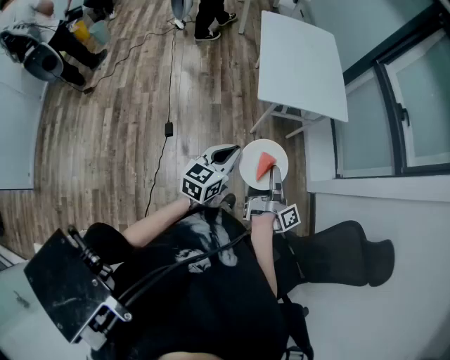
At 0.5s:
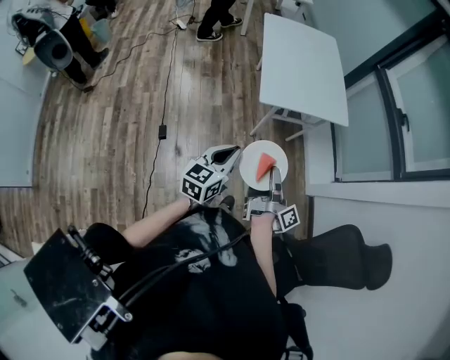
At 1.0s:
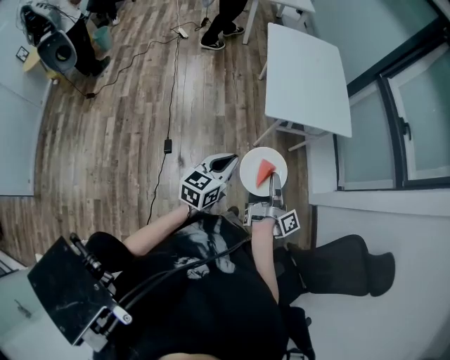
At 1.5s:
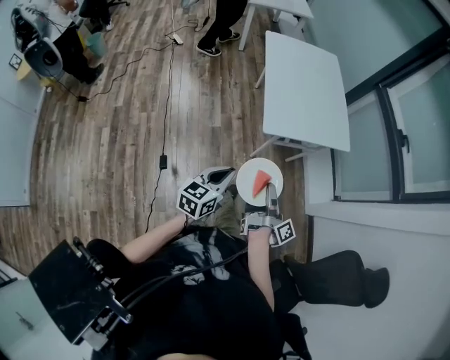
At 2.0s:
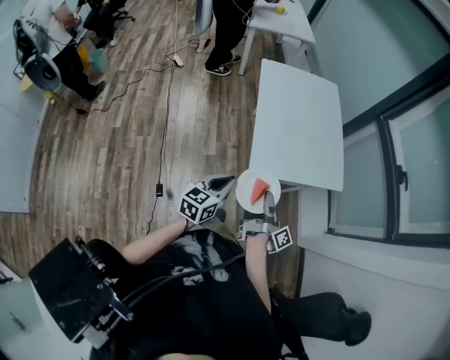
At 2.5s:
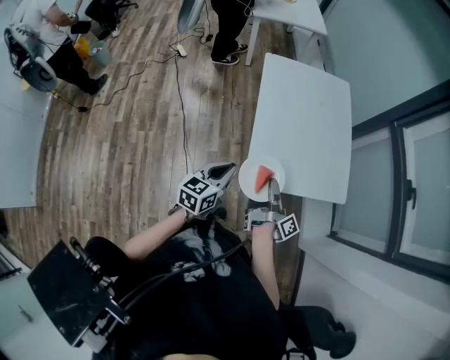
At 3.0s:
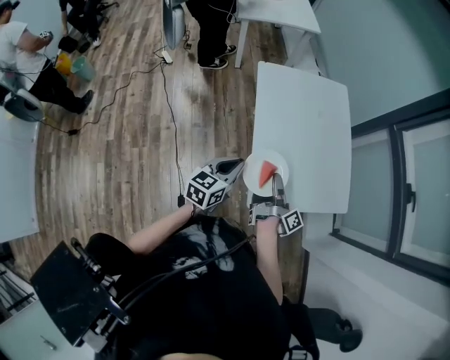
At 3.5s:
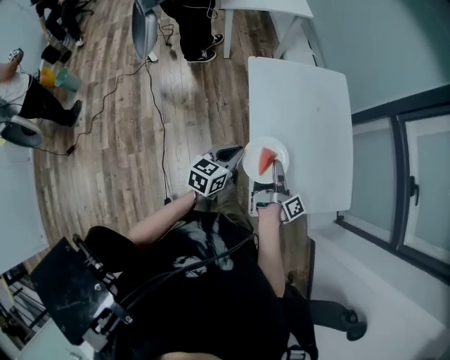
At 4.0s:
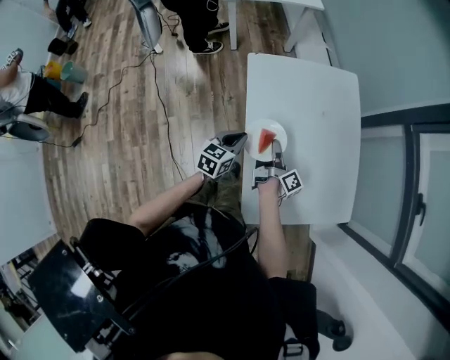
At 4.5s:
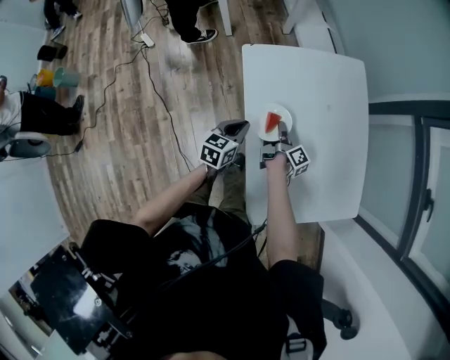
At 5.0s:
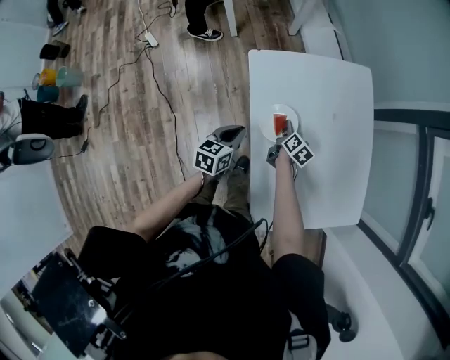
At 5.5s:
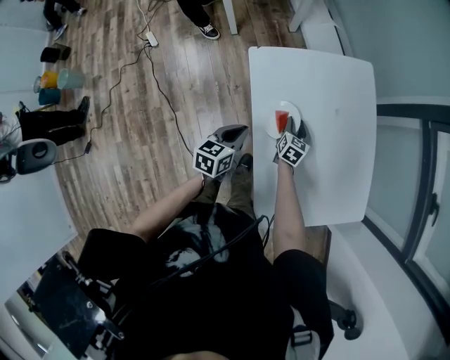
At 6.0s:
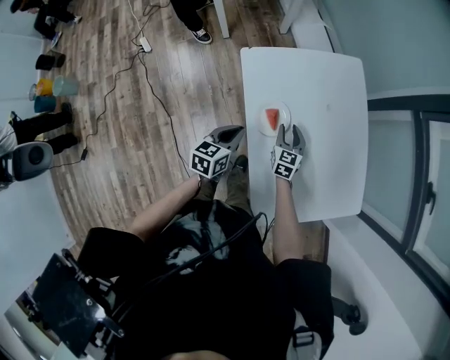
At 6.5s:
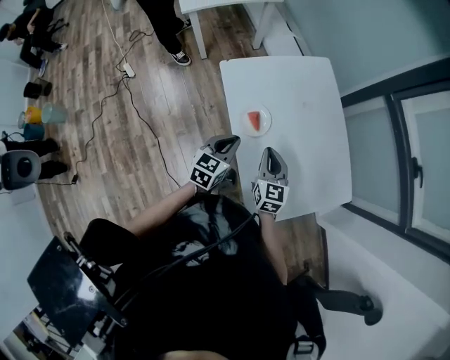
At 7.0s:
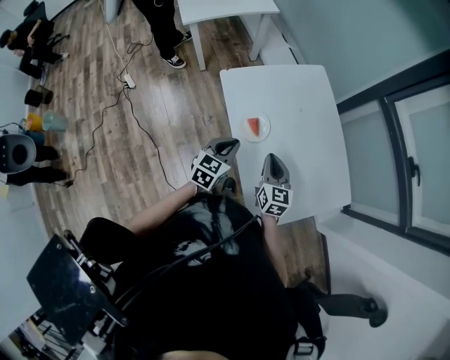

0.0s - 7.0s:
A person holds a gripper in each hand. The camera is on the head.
0.0s - 2.0s: The left gripper ends up approximately 25 cm from where it was.
2.0s - 3.5s: The left gripper shifts by approximately 40 cm.
3.5s - 5.0s: The left gripper moves about 20 cm.
5.0s - 7.0s: The left gripper heads upward, covering approximately 10 cm, and turns by some 30 degrees.

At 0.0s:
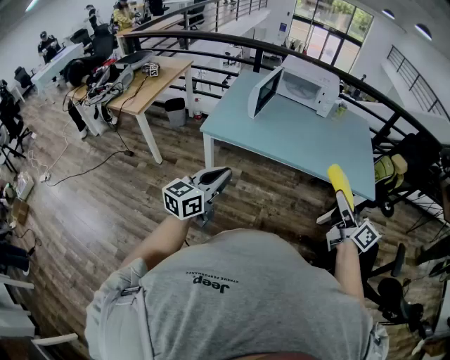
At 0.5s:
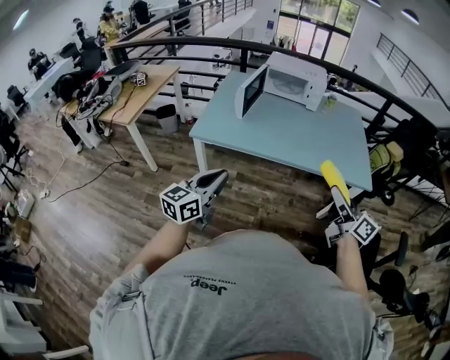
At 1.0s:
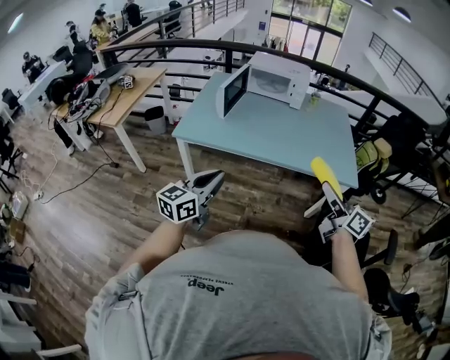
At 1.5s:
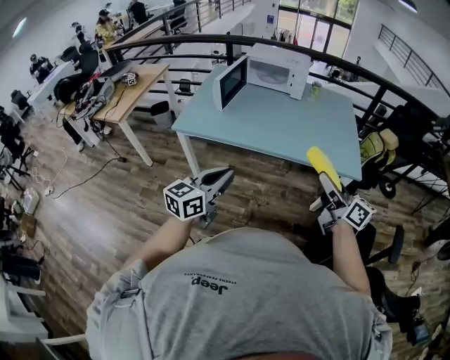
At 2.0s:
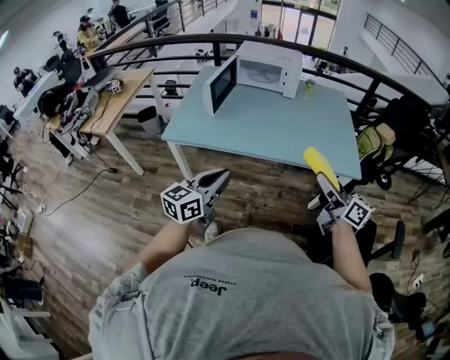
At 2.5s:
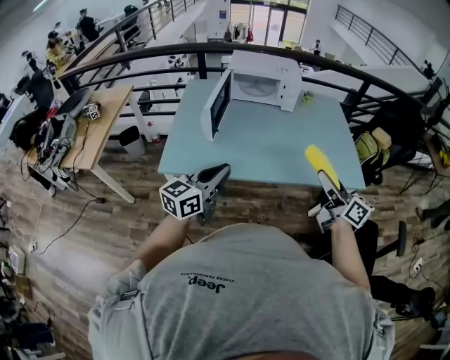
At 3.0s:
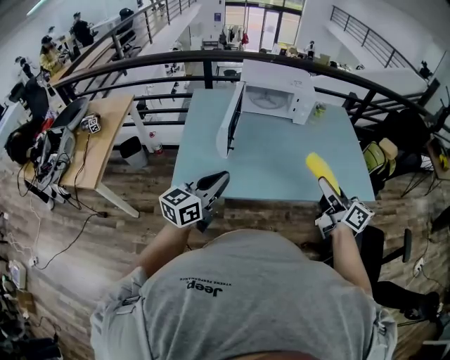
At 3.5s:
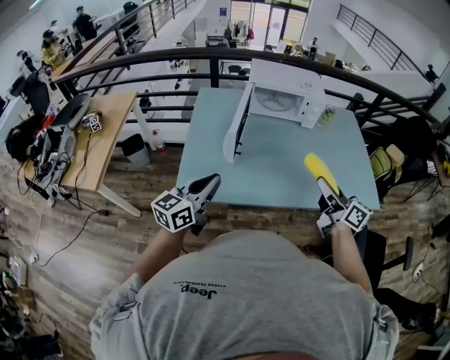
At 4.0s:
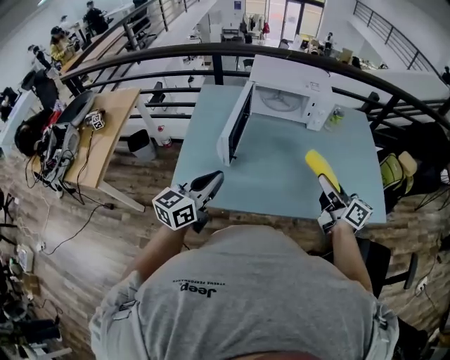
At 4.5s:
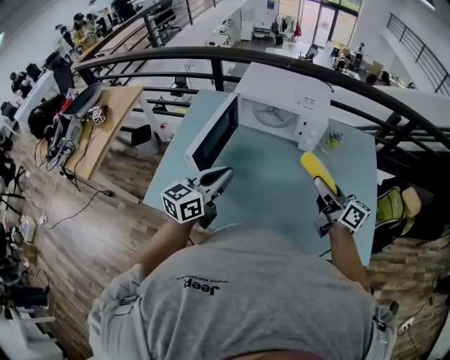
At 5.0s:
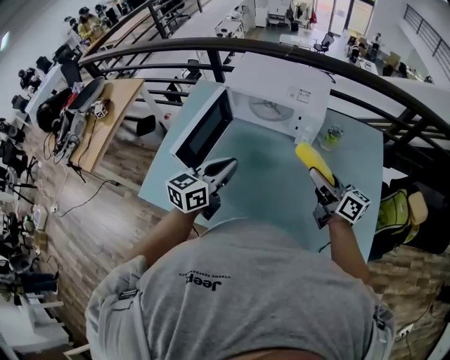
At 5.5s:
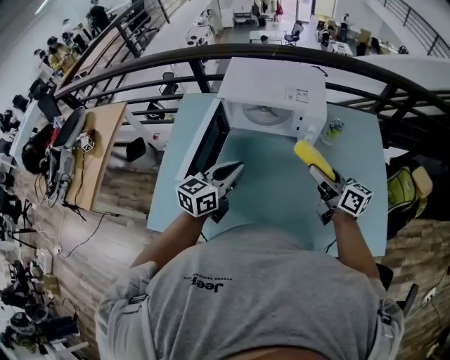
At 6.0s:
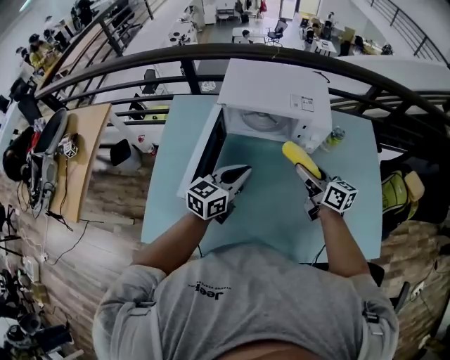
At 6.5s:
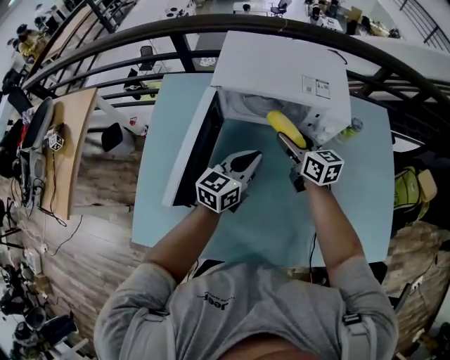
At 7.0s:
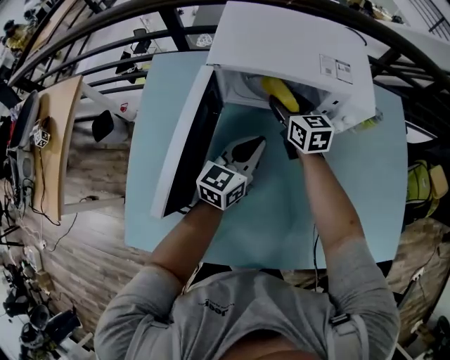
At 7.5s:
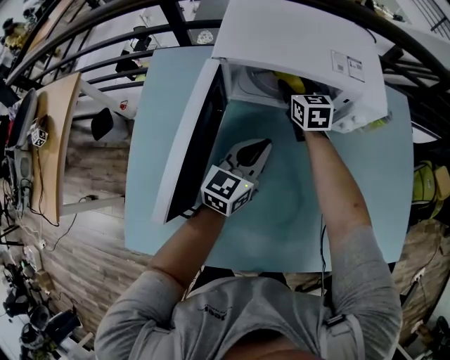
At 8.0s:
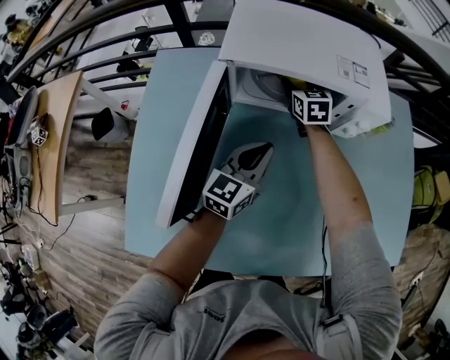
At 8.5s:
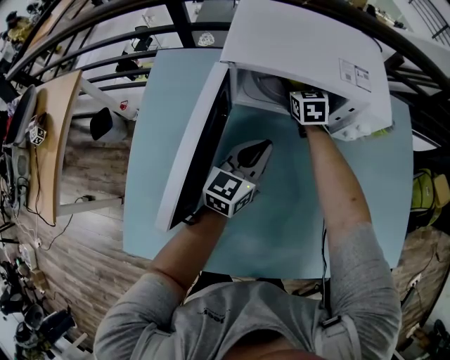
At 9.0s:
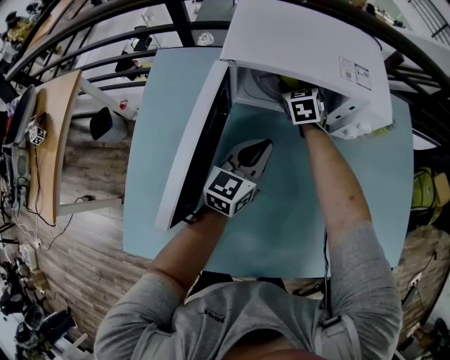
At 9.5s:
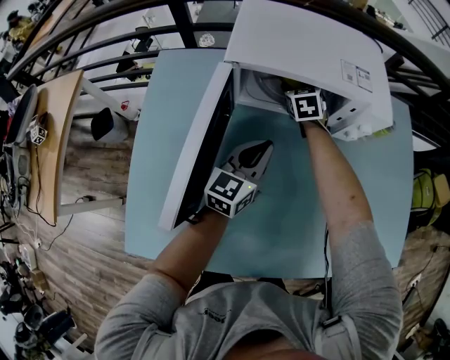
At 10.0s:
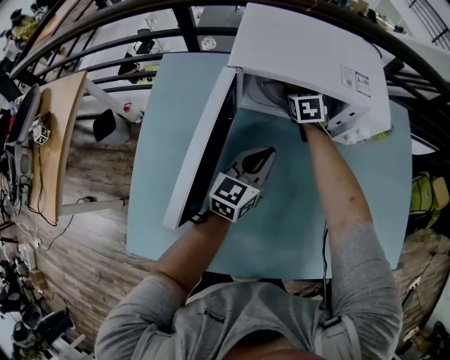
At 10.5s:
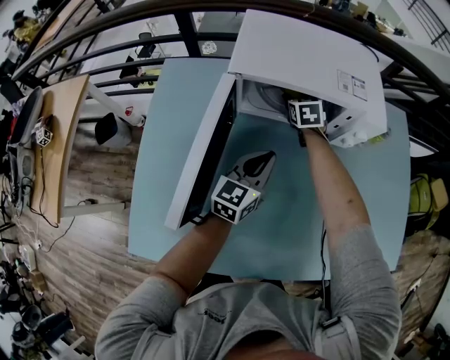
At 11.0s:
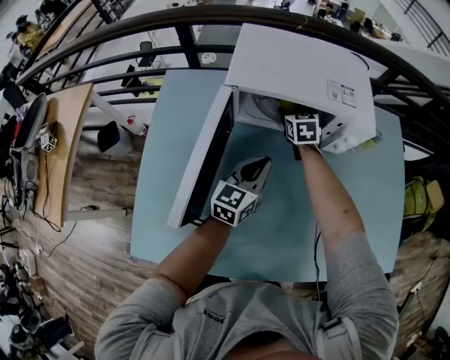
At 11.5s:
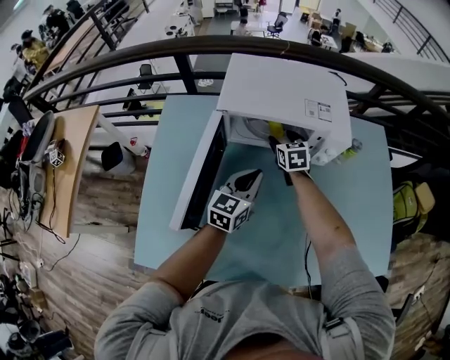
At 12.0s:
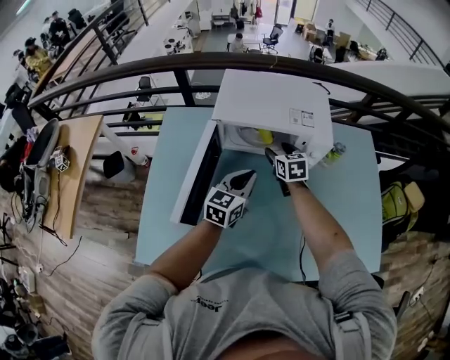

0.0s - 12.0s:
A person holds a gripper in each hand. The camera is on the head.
0.0s - 2.0s: The left gripper shifts about 15 cm to the right, while the right gripper heads to the right and forward, covering approximately 10 cm.
2.0s - 4.0s: The two grippers go approximately 35 cm forward and to the left.
4.0s - 6.0s: The right gripper is displaced forward by about 25 cm. Meanwhile the left gripper heads forward and to the right, covering about 30 cm.
6.0s - 8.0s: The right gripper goes approximately 35 cm forward, downward and to the left, and changes its angle by some 40 degrees, while the left gripper moves downward and forward, about 15 cm.
8.0s - 10.0s: The grippers move only a little.
10.0s - 12.0s: The left gripper heads upward, covering approximately 10 cm, while the right gripper moves backward, upward and to the right, roughly 15 cm.

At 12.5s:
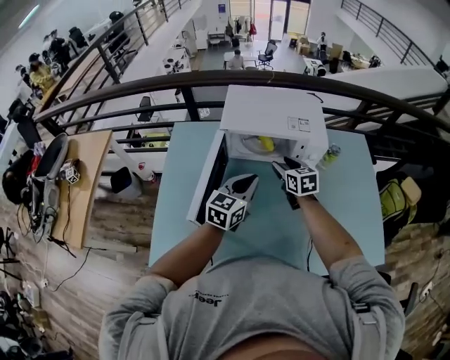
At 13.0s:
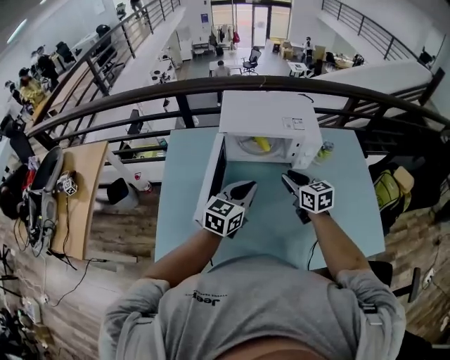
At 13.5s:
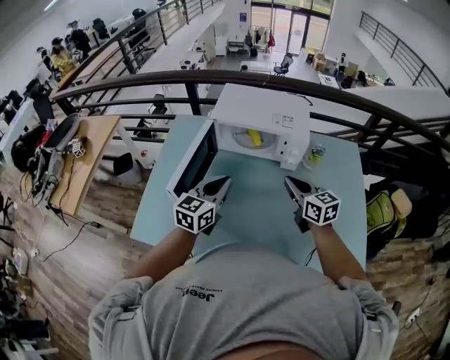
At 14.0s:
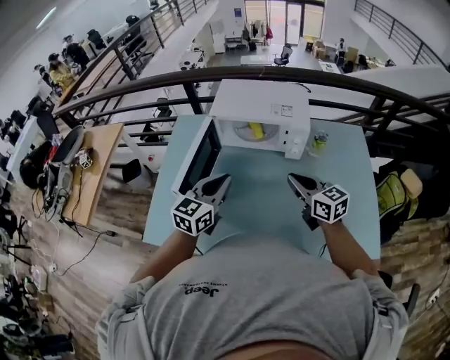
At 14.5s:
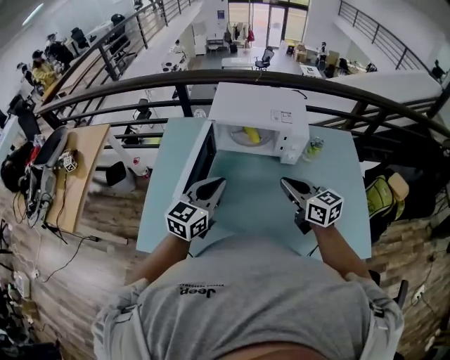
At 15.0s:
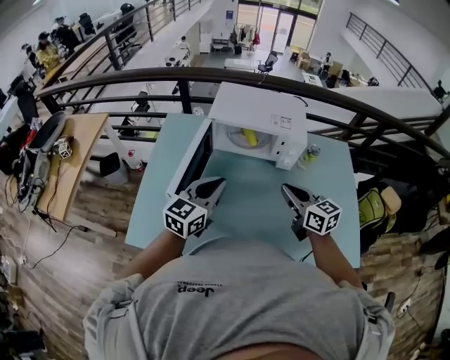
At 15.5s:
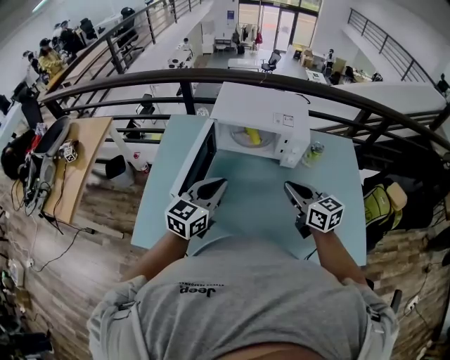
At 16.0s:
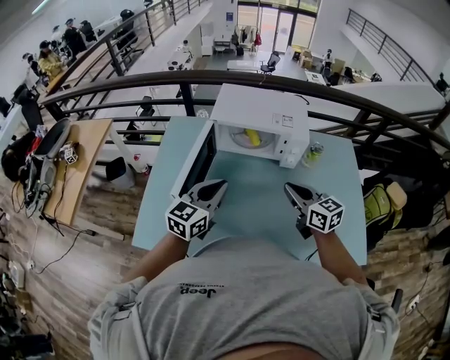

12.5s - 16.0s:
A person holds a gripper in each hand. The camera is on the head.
12.5s - 14.5s: The right gripper shifts approximately 20 cm backward and upward, changes its angle by about 20 degrees, and closes up. Meanwhile the left gripper travels backward and upward by approximately 10 cm.
14.5s - 16.0s: There are only small adjustments of the grippers.

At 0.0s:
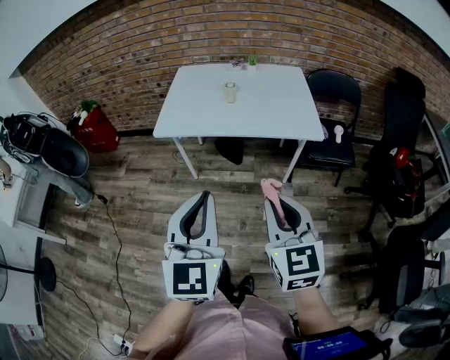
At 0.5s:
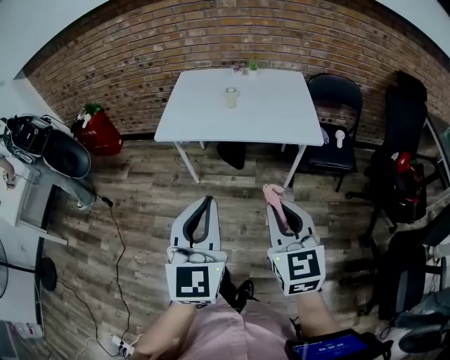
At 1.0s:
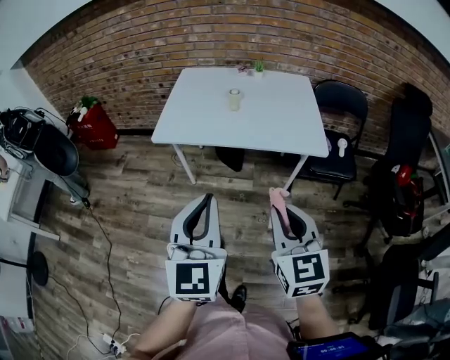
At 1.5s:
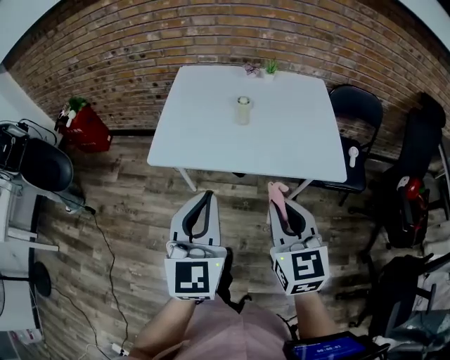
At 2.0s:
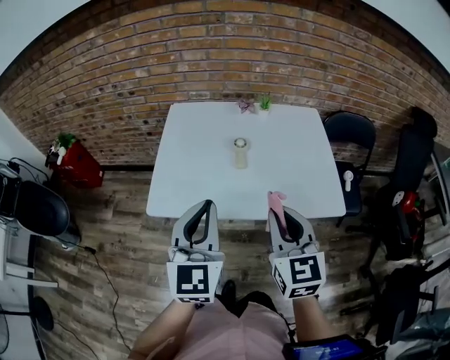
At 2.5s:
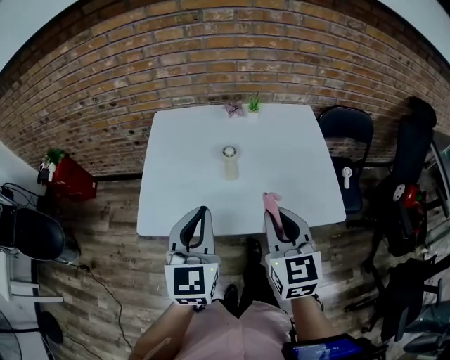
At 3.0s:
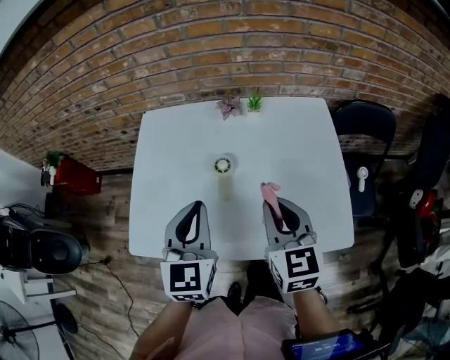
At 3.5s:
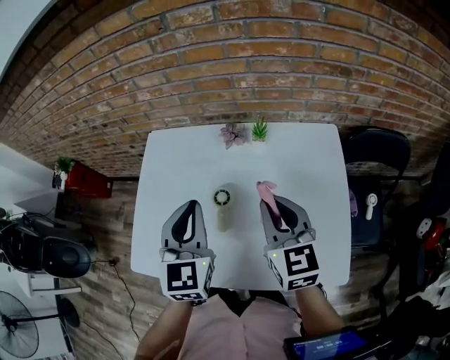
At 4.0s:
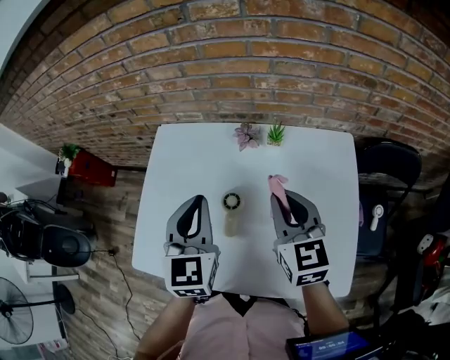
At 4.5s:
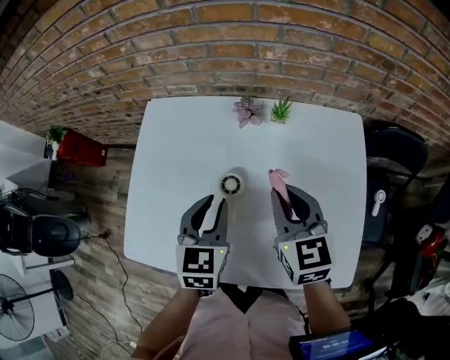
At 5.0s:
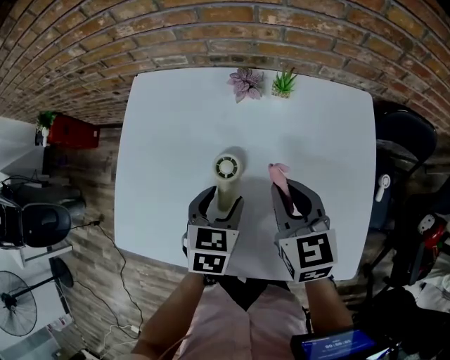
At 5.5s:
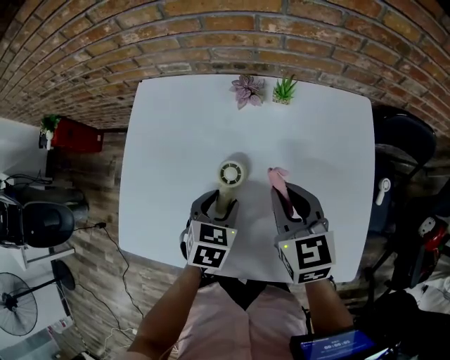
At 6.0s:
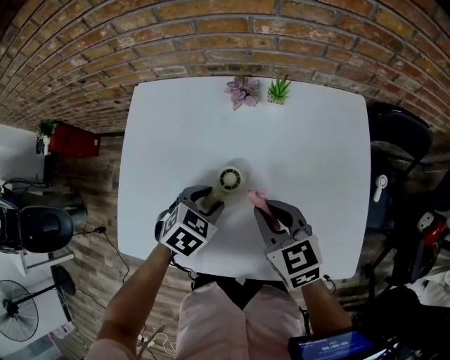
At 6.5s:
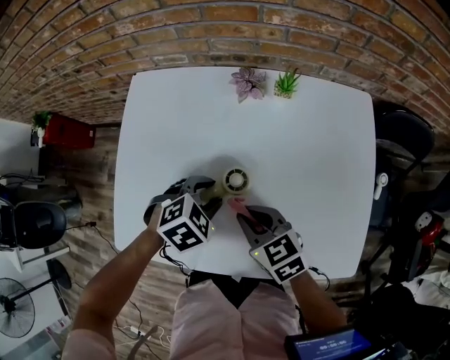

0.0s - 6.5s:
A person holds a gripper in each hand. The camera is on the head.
0.0s - 2.0s: The grippers both shift forward by about 35 cm.
2.0s - 4.5s: The left gripper goes roughly 35 cm forward, downward and to the right, and turns by approximately 30 degrees; the right gripper moves forward, about 30 cm.
4.5s - 6.5s: The right gripper travels downward, backward and to the left by about 20 cm, and rotates about 30 degrees. The left gripper travels downward by approximately 10 cm, and angles its fingers downward, by about 30 degrees.
